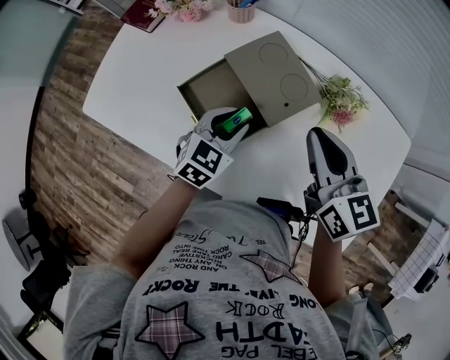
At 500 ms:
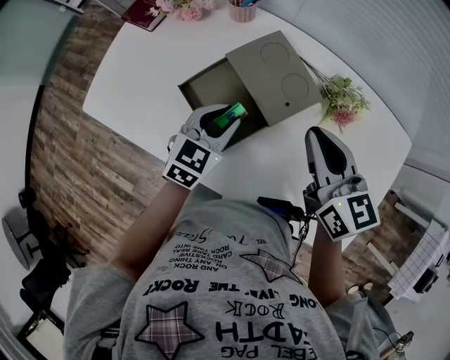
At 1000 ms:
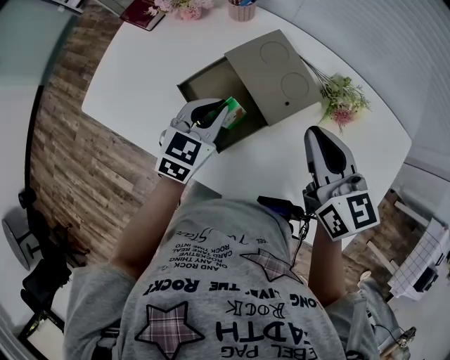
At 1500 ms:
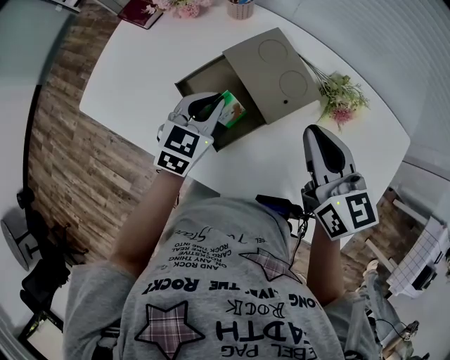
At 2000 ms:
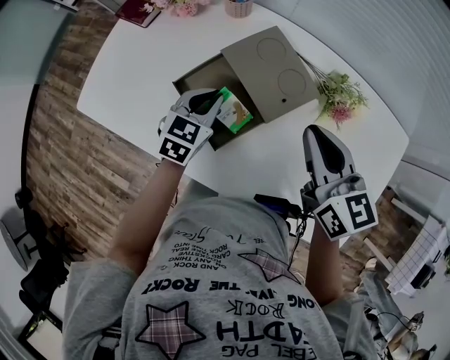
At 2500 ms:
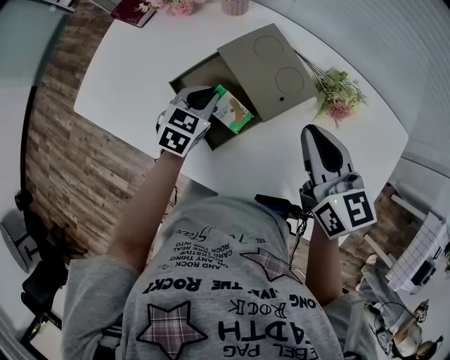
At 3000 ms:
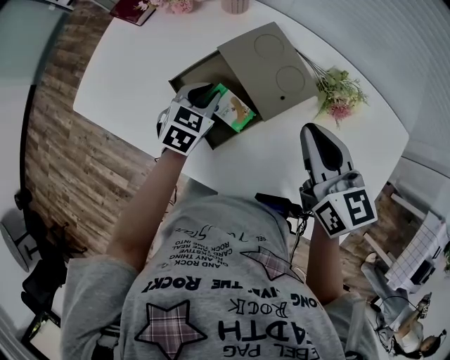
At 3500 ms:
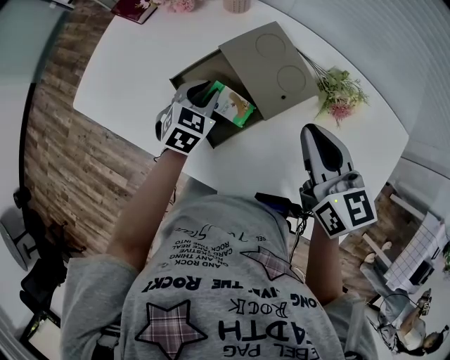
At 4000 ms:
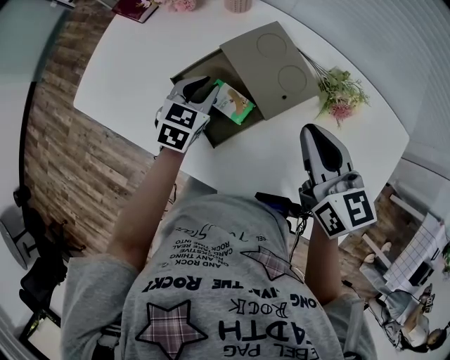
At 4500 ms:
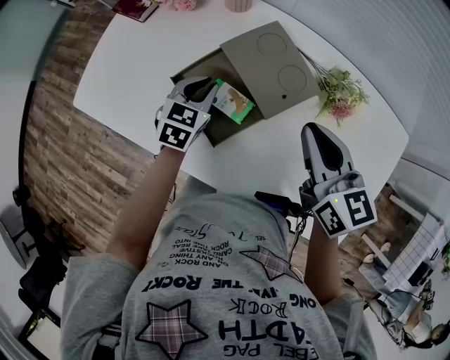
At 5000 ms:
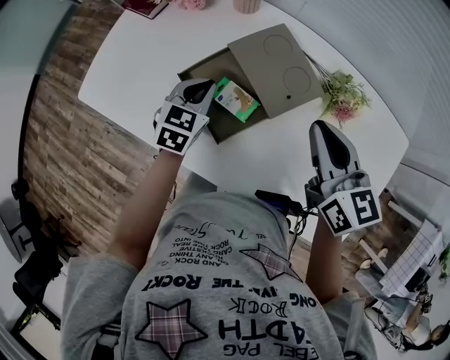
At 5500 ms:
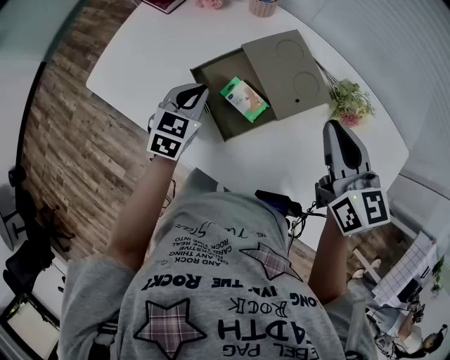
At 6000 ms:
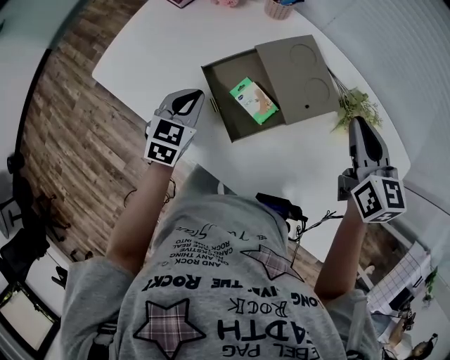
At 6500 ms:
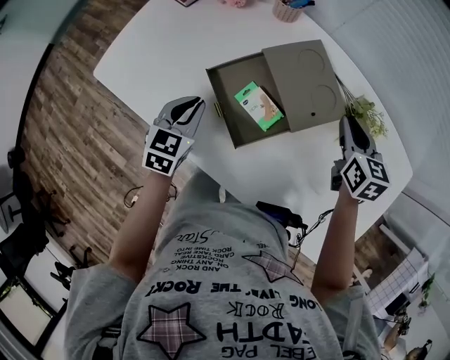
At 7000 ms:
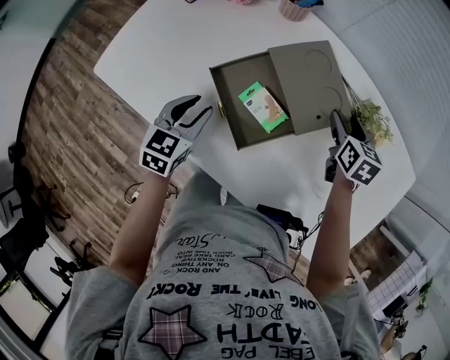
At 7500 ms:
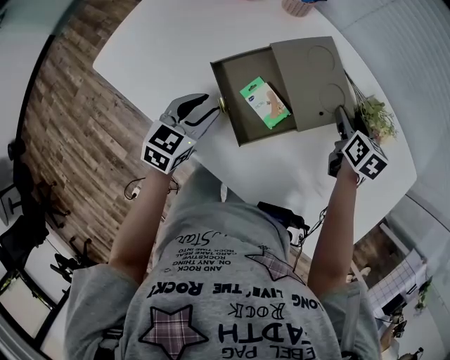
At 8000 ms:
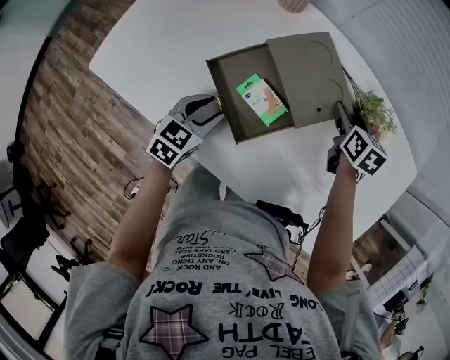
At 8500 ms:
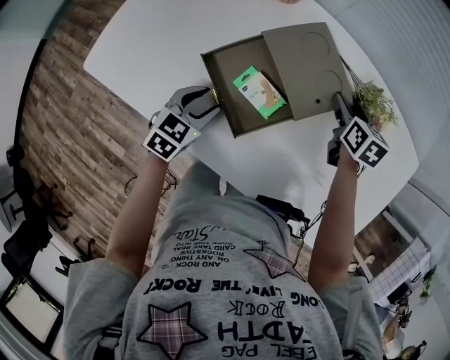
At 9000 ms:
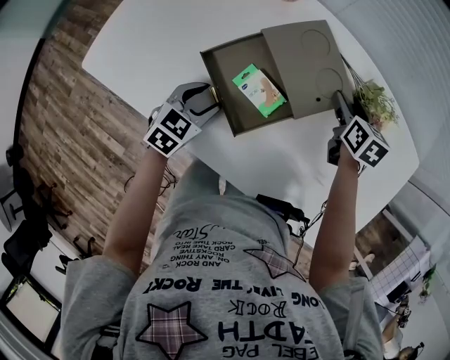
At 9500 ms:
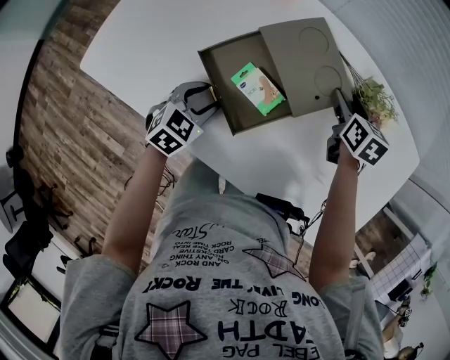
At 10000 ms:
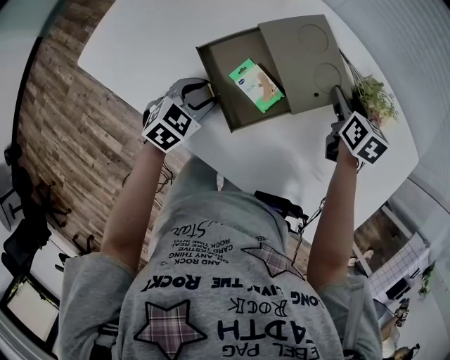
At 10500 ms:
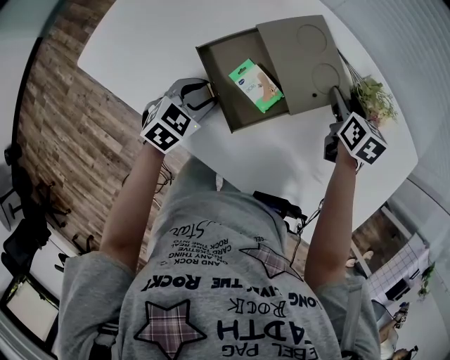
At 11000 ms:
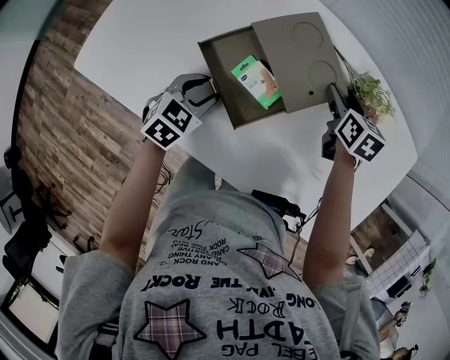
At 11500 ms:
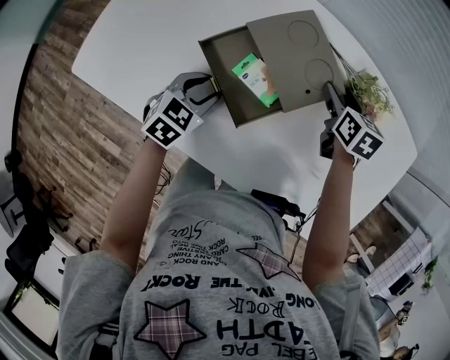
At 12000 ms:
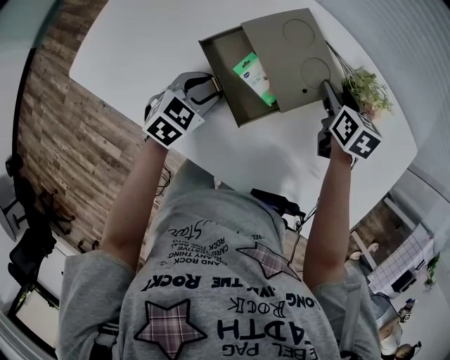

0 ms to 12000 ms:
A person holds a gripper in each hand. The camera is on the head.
0 ms to 2000 ms: The left gripper goes about 5 cm to the left.
2000 ms to 4000 ms: The grippers make only small movements.
4000 ms to 6000 ms: The left gripper goes approximately 10 cm to the left and backward, while the right gripper goes roughly 10 cm forward and to the right.
6000 ms to 8000 ms: The right gripper moves downward, roughly 20 cm, swivels approximately 30 degrees, and opens up, while the left gripper travels downward by about 5 cm, and opens its fingers.
8000 ms to 12000 ms: The grippers stay close to where they were, moving slightly.

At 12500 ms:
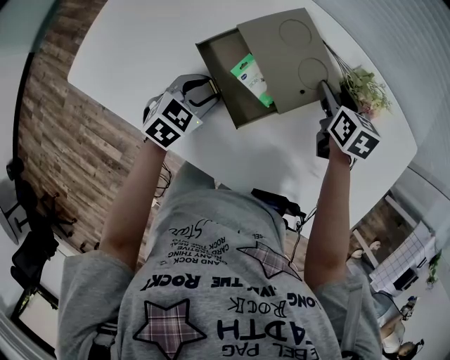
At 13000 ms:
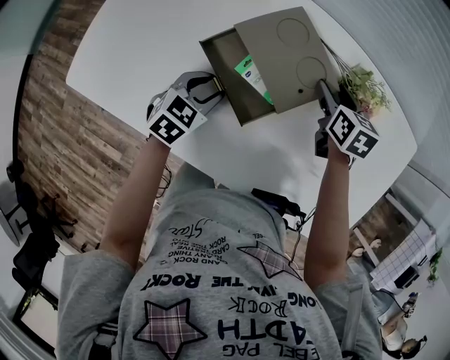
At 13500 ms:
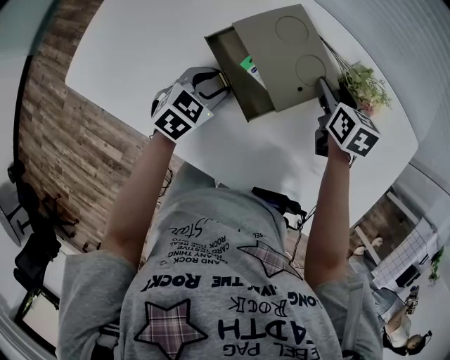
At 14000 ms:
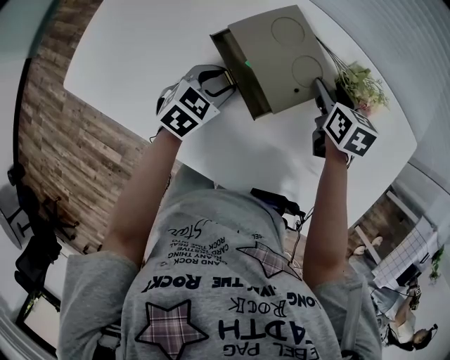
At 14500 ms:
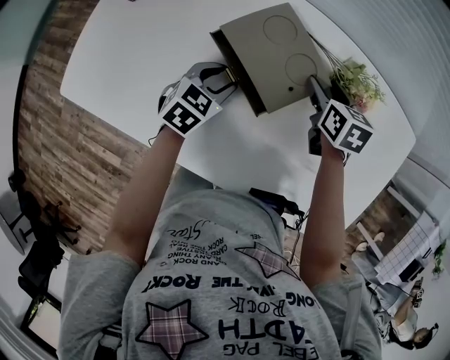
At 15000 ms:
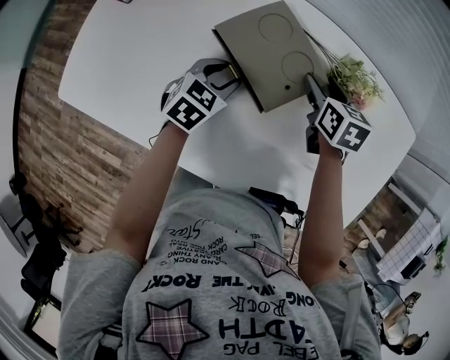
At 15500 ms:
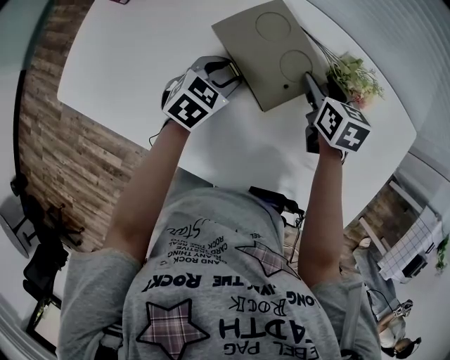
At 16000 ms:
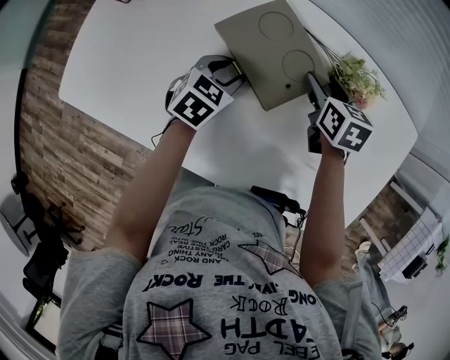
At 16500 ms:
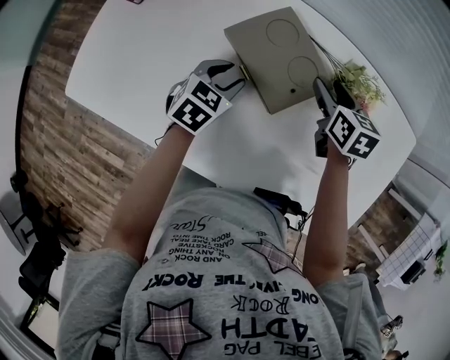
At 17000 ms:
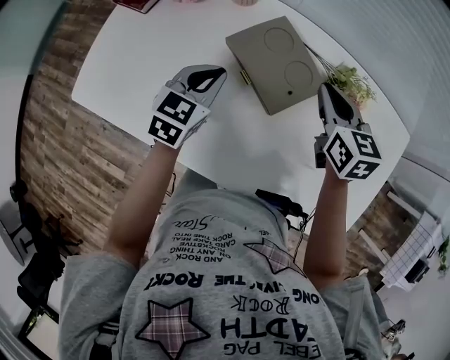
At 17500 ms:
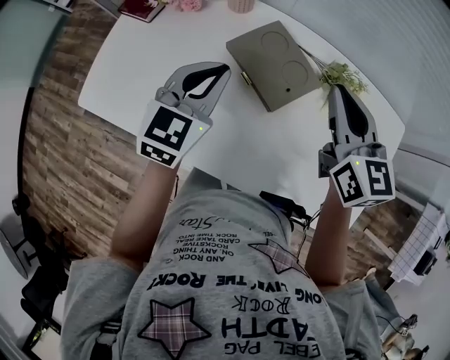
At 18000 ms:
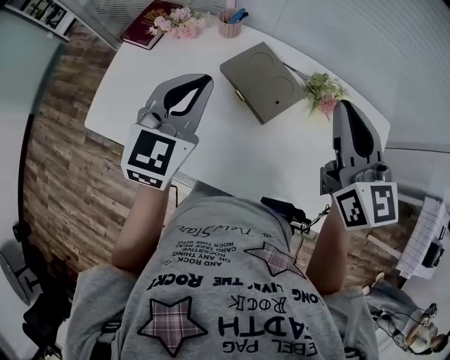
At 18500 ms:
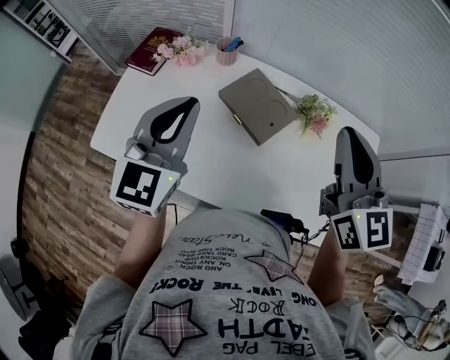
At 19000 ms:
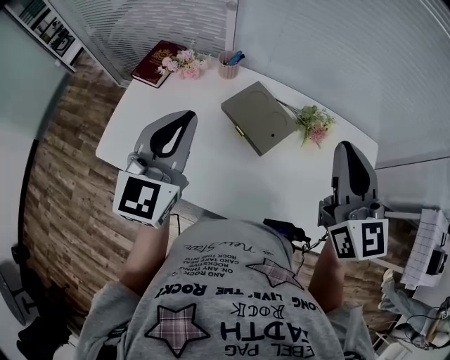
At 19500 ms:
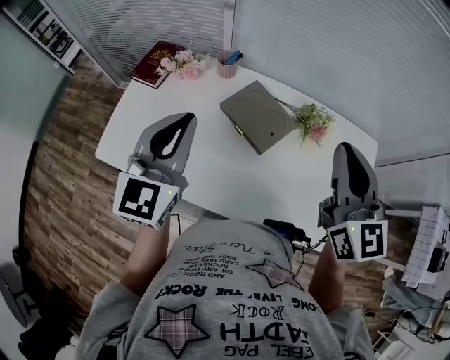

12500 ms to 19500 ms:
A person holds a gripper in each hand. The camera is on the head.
12500 ms to 14500 ms: The left gripper heads forward, covering some 5 cm.
14500 ms to 16000 ms: The grippers move only a little.
16000 ms to 17500 ms: Both grippers move upward, about 25 cm. The right gripper tilts its fingers approximately 30 degrees upward, and closes; the left gripper turns by about 30 degrees, and closes its fingers.
17500 ms to 19500 ms: The right gripper goes about 15 cm upward and backward, while the left gripper travels upward by some 15 cm.

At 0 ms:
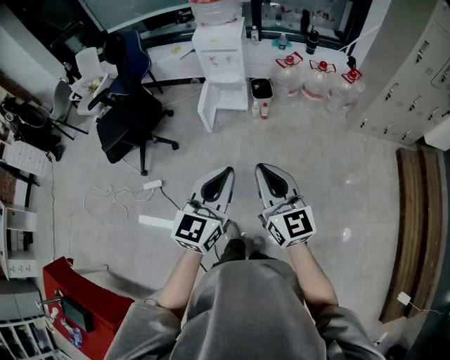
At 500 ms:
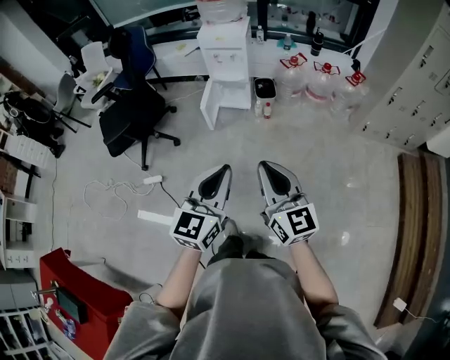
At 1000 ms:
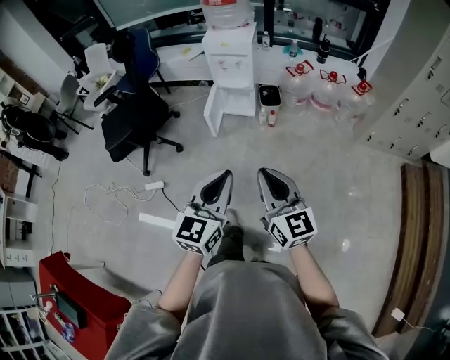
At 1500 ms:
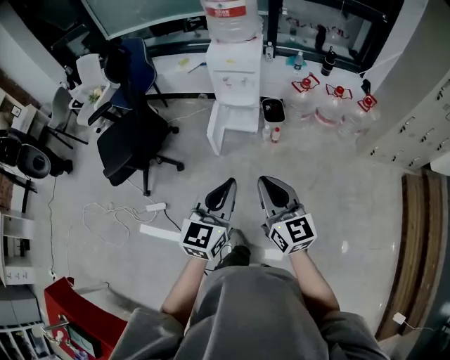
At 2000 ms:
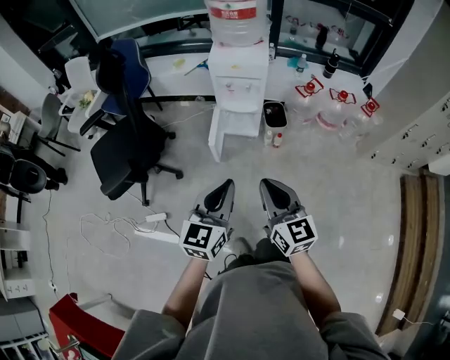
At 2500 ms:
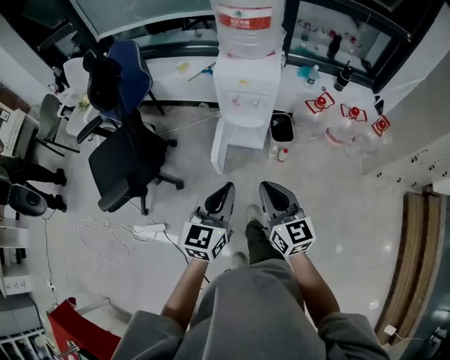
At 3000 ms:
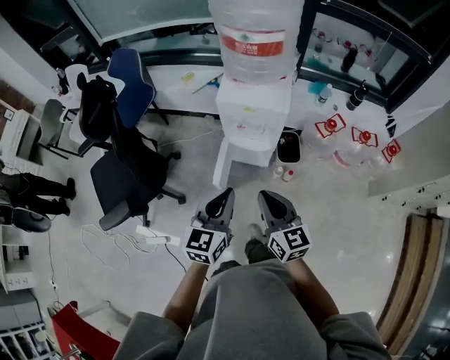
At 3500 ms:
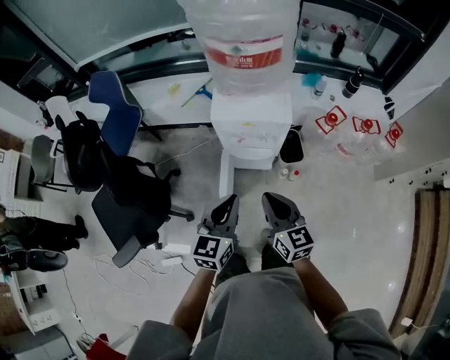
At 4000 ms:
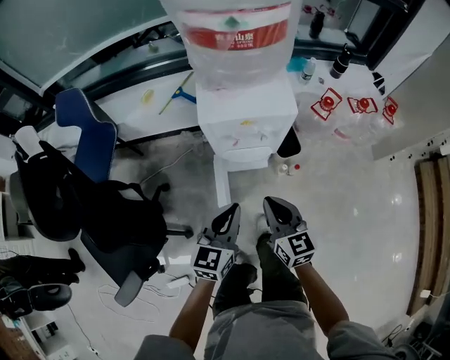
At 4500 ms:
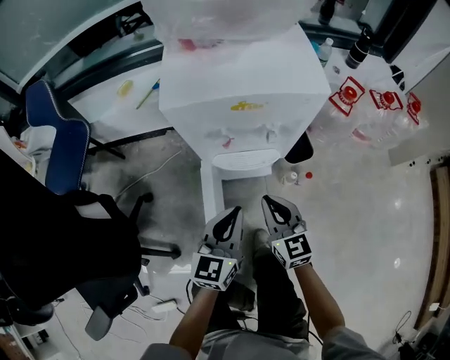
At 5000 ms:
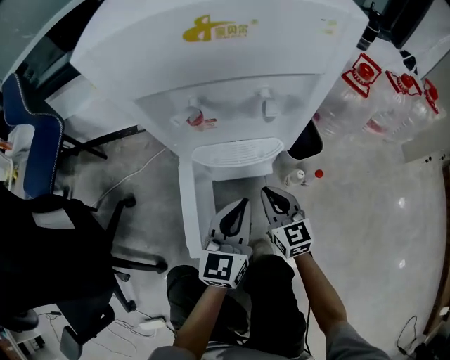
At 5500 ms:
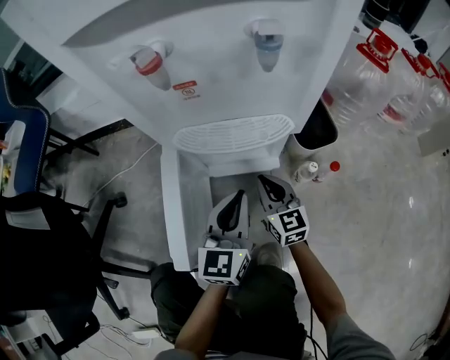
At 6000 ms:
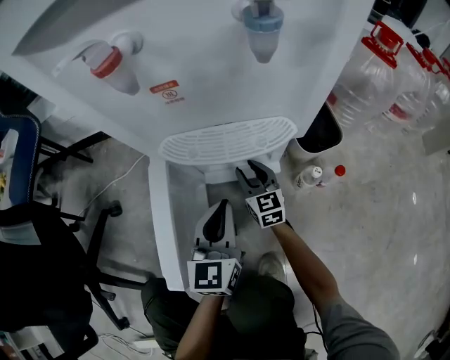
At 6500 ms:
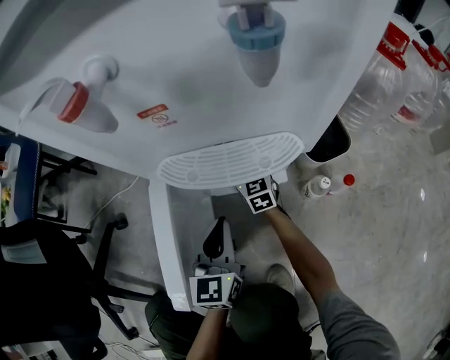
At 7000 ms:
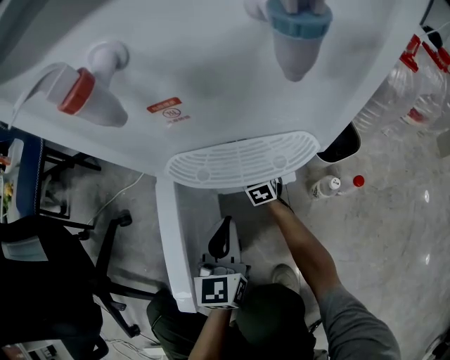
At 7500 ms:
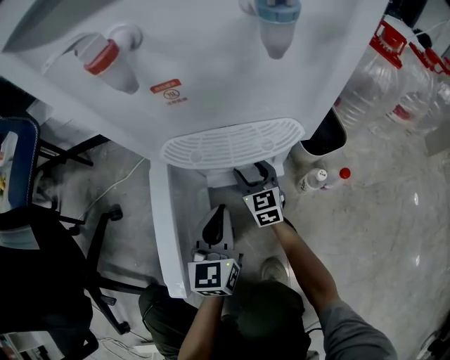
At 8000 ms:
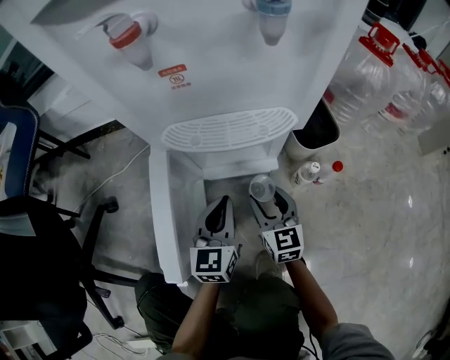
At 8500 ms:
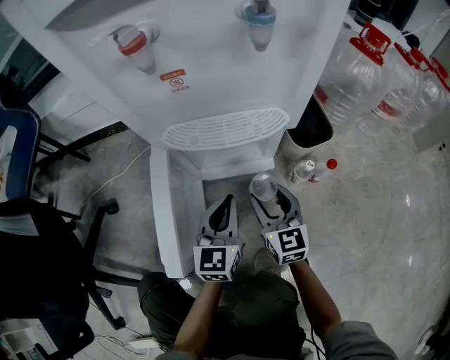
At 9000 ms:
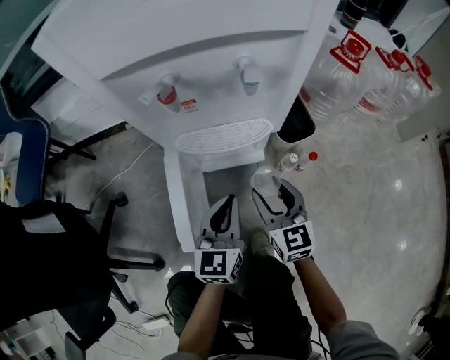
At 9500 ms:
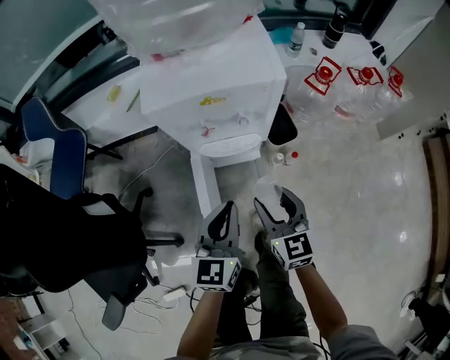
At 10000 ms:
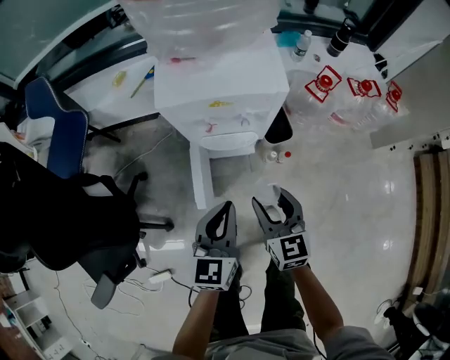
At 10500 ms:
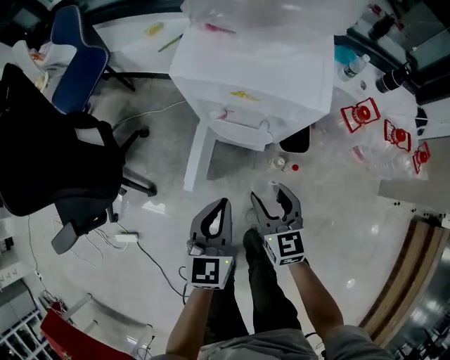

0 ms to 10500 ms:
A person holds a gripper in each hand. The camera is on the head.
0 ms to 2000 ms: The two grippers go roughly 30 cm forward and to the left.
2000 ms to 4000 ms: The grippers both shift forward and downward by some 40 cm.
4000 ms to 6500 ms: The right gripper is displaced downward and forward by about 80 cm, and opens up. Meanwhile the left gripper moves downward, approximately 50 cm.
6500 ms to 8500 ms: The right gripper goes some 25 cm backward and upward.
8500 ms to 10500 ms: Both grippers move upward, approximately 40 cm. The right gripper swivels roughly 20 degrees; the left gripper turns by approximately 20 degrees.
